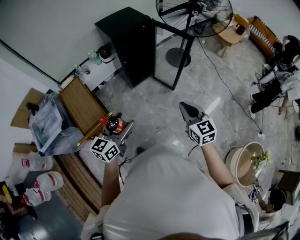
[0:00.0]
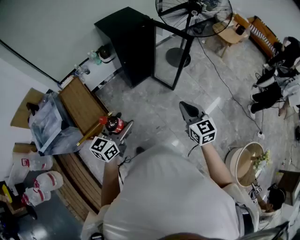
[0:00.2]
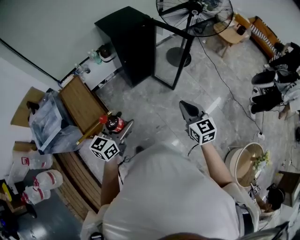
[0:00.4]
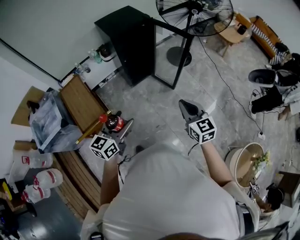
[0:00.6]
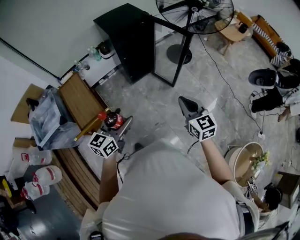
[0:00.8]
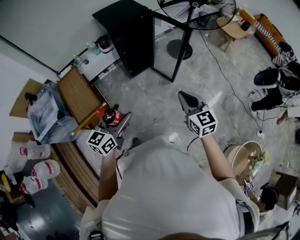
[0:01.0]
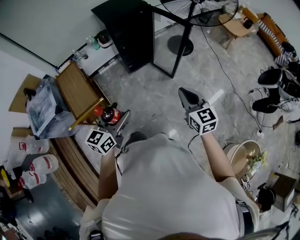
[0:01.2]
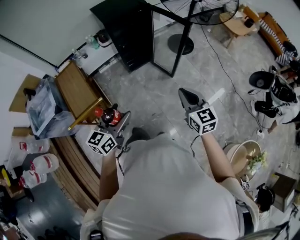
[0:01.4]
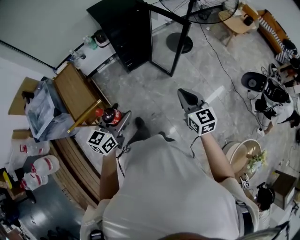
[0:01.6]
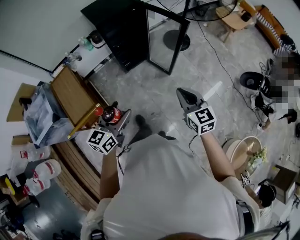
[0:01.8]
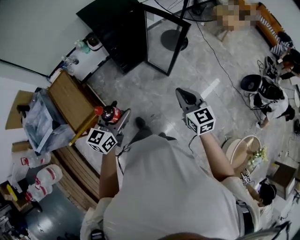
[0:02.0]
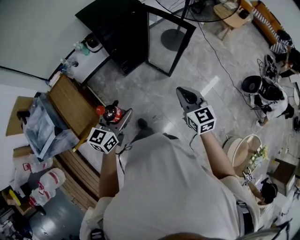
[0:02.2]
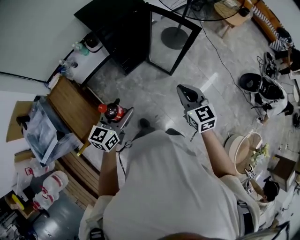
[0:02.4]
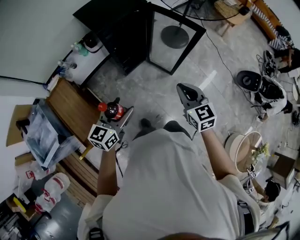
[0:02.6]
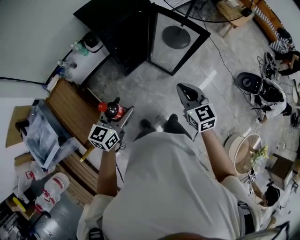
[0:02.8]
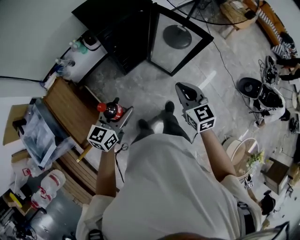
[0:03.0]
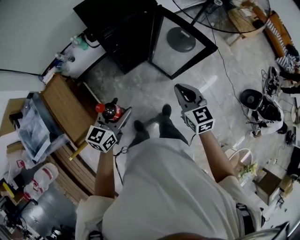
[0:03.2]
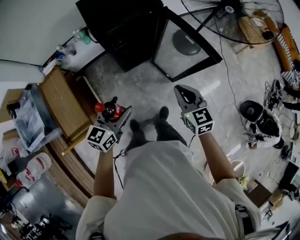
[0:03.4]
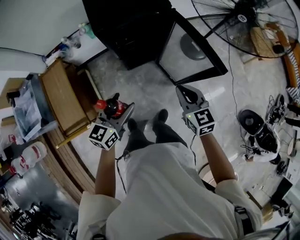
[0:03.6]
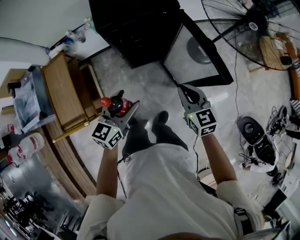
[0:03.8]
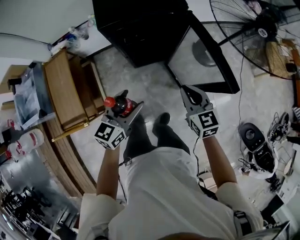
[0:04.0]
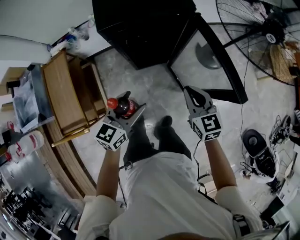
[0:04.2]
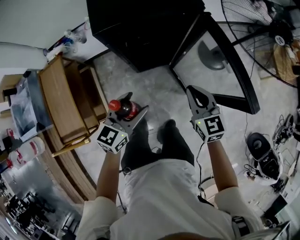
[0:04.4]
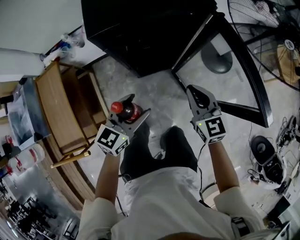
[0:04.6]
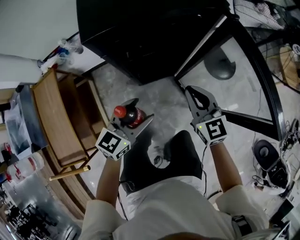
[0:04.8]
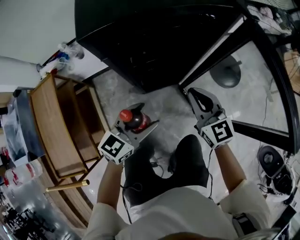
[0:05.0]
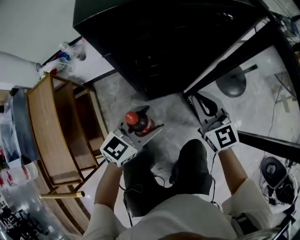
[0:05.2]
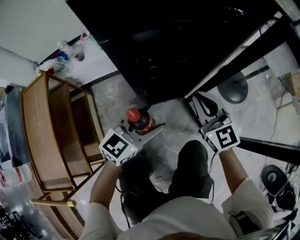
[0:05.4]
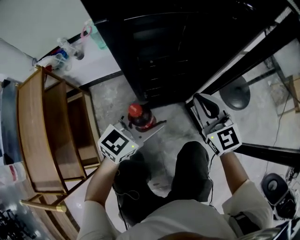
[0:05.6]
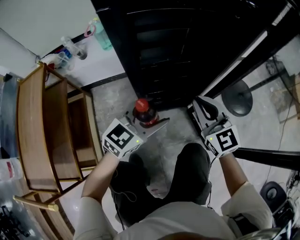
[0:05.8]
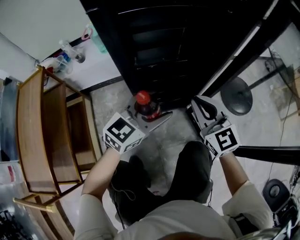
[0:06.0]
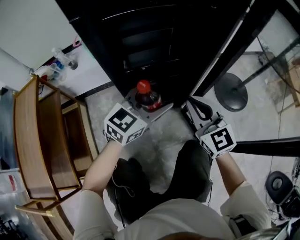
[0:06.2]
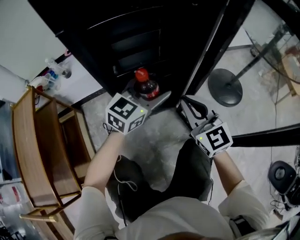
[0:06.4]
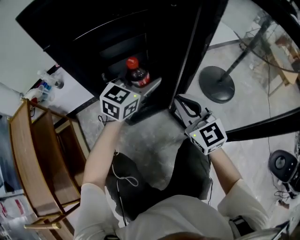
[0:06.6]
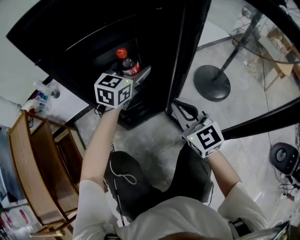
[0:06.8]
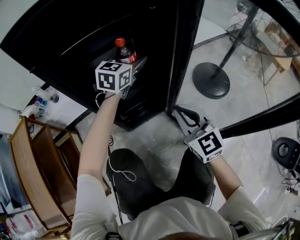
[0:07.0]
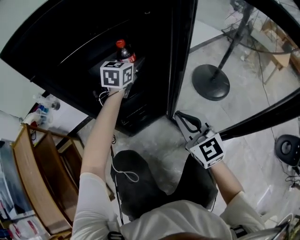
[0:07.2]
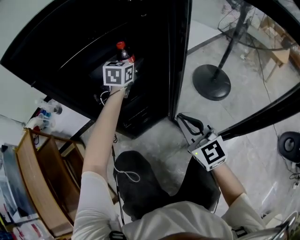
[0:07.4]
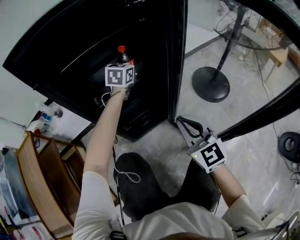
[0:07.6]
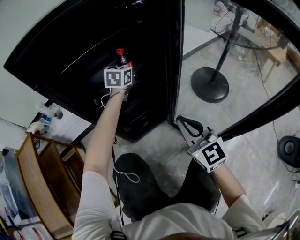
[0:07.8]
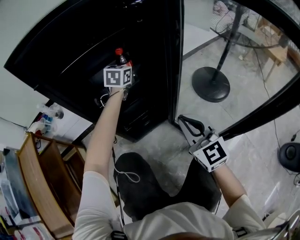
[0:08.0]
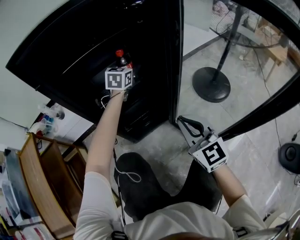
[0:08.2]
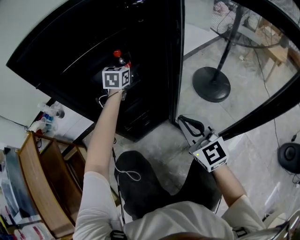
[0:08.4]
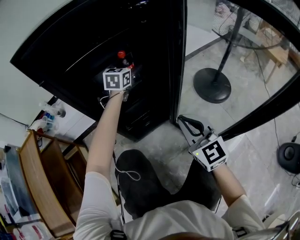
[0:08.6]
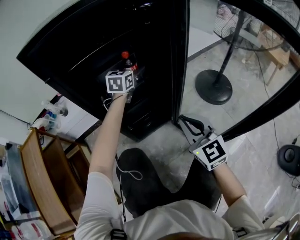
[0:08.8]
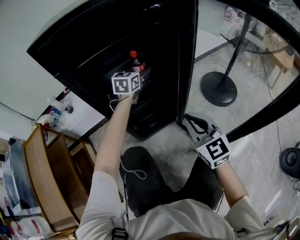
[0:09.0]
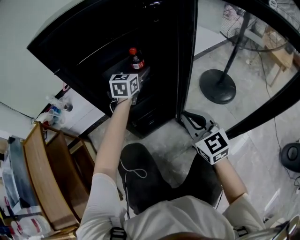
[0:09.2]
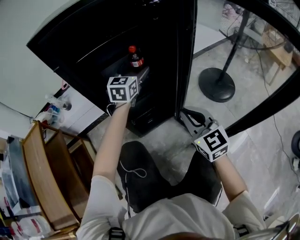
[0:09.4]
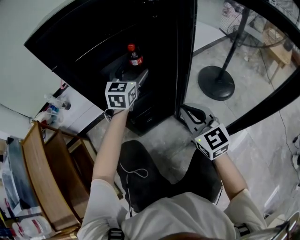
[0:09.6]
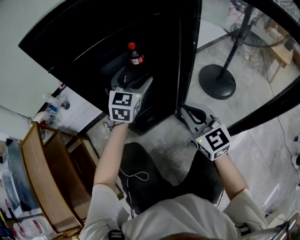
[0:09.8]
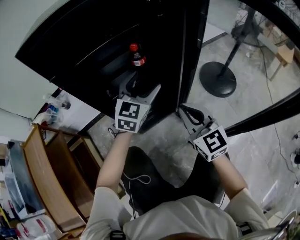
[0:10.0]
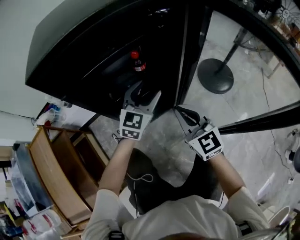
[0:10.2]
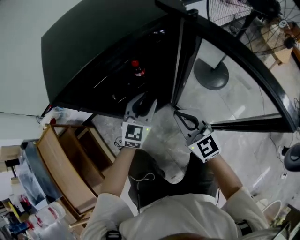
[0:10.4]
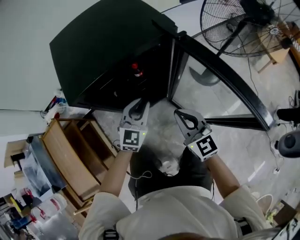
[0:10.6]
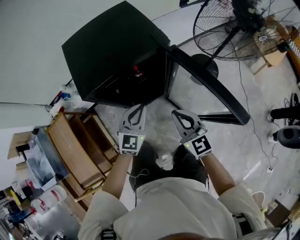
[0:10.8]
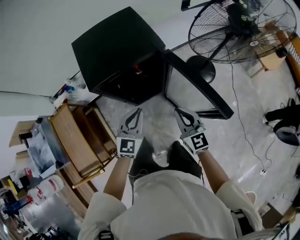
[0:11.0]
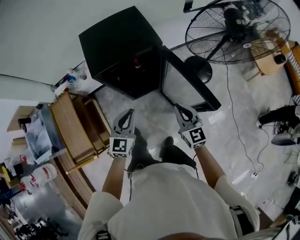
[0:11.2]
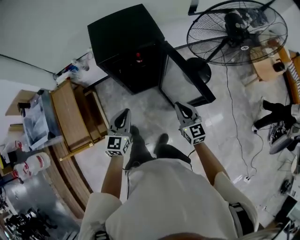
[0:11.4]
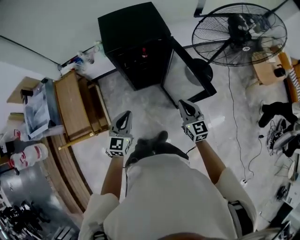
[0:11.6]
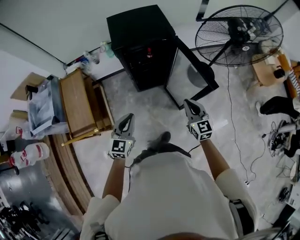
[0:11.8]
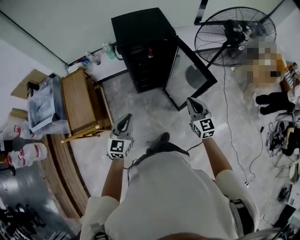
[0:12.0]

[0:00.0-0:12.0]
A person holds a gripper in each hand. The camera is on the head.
0:00.0 to 0:01.6: The two grippers go some 10 cm to the right.
0:01.6 to 0:03.0: The left gripper shifts approximately 25 cm forward; the right gripper is displaced forward and to the left by roughly 25 cm.
0:03.0 to 0:04.4: The right gripper moves forward and downward, about 30 cm; the left gripper goes roughly 25 cm forward, downward and to the right.
0:04.4 to 0:06.0: Both grippers travel together downward and forward, approximately 35 cm. The right gripper swivels about 20 degrees.
0:06.0 to 0:07.6: The right gripper moves to the right and backward, roughly 10 cm; the left gripper heads forward, covering approximately 30 cm.
0:07.6 to 0:09.0: The grippers make only small movements.
0:09.0 to 0:10.4: The left gripper moves backward and upward, approximately 20 cm, and closes up. Meanwhile the right gripper moves upward, roughly 10 cm.
0:10.4 to 0:12.0: The left gripper heads backward and upward, covering roughly 60 cm, and swivels roughly 30 degrees, while the right gripper travels upward and backward by some 40 cm.

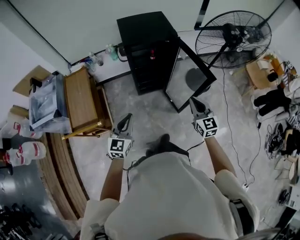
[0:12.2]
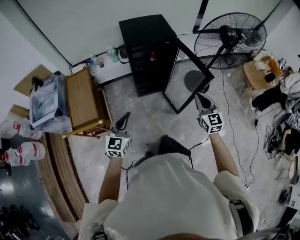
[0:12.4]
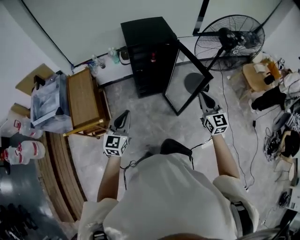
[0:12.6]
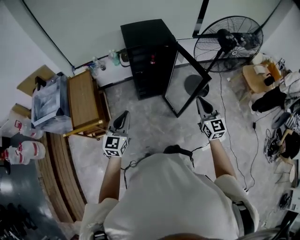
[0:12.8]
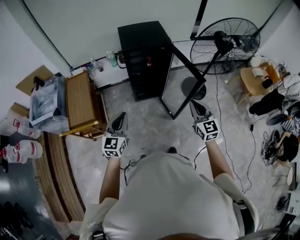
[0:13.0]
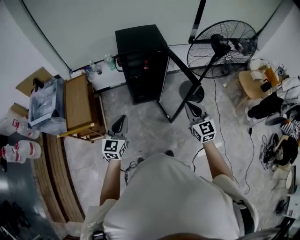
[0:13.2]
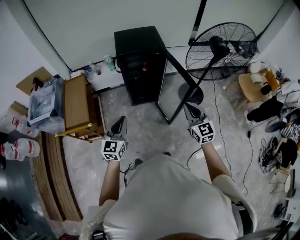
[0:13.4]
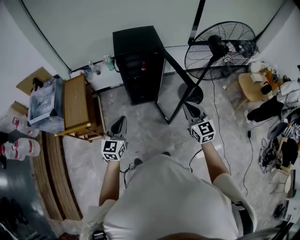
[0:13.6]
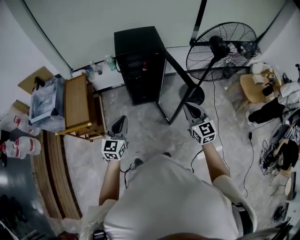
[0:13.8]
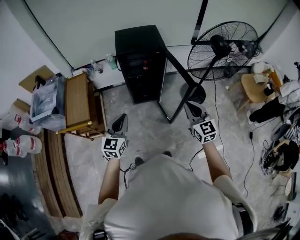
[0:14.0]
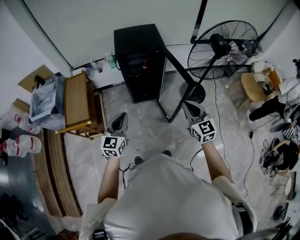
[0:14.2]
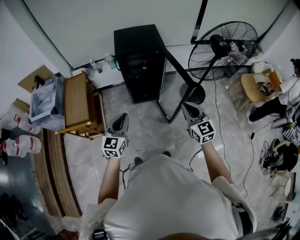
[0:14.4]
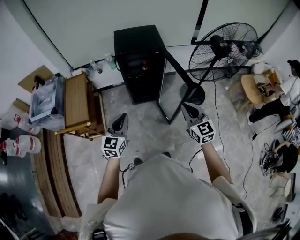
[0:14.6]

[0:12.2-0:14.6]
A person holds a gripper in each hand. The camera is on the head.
0:12.2 to 0:13.4: The left gripper heads to the right and upward, covering roughly 10 cm. The right gripper travels upward, to the right and backward by roughly 10 cm.
0:13.4 to 0:14.6: The grippers move only a little.

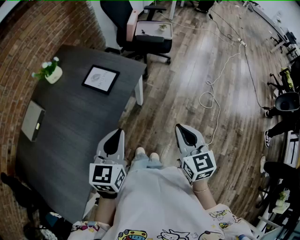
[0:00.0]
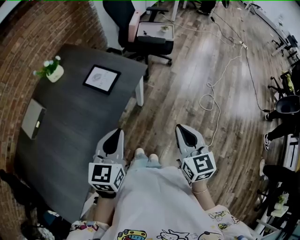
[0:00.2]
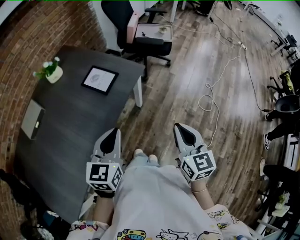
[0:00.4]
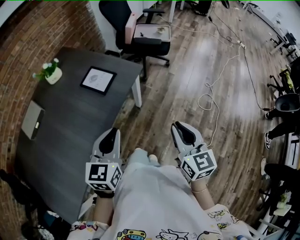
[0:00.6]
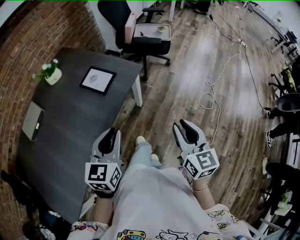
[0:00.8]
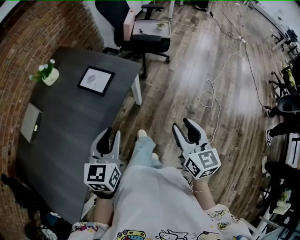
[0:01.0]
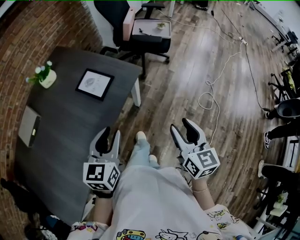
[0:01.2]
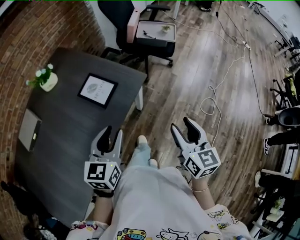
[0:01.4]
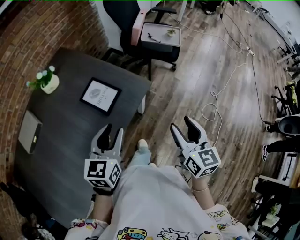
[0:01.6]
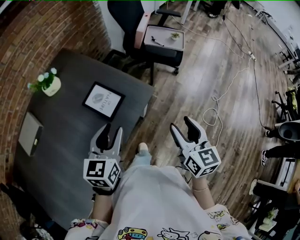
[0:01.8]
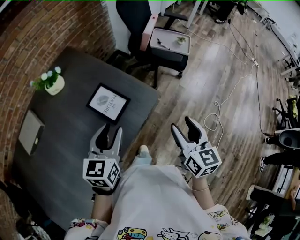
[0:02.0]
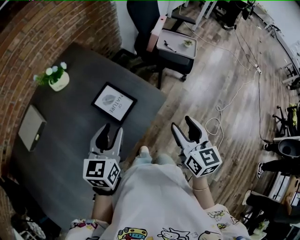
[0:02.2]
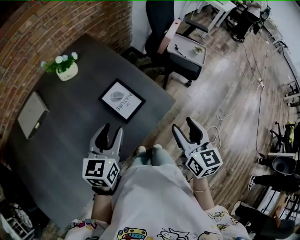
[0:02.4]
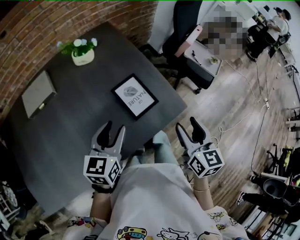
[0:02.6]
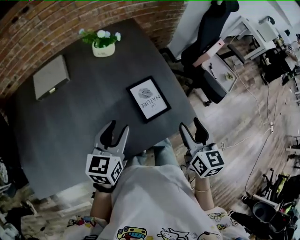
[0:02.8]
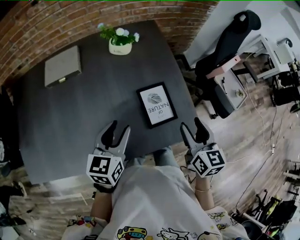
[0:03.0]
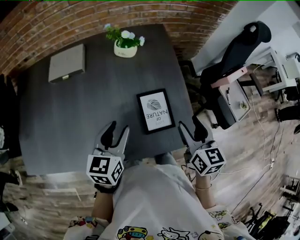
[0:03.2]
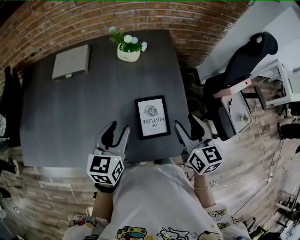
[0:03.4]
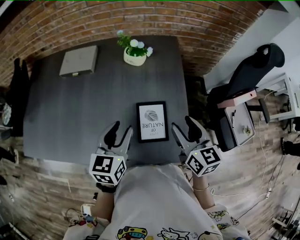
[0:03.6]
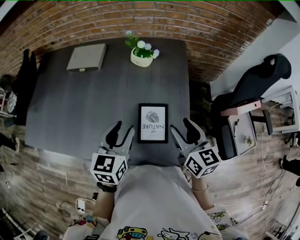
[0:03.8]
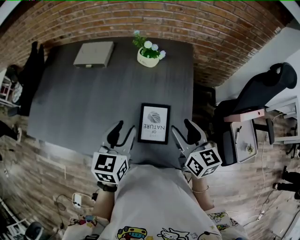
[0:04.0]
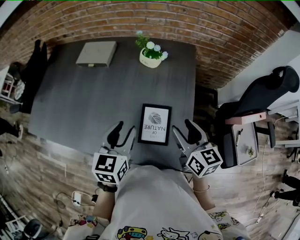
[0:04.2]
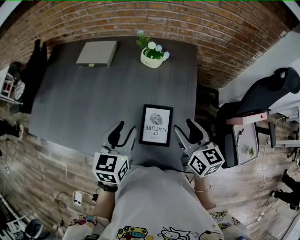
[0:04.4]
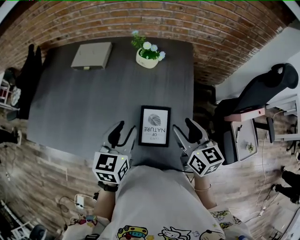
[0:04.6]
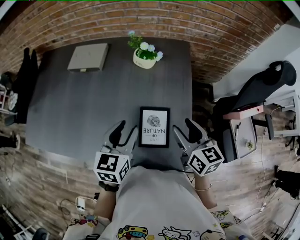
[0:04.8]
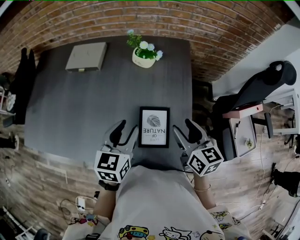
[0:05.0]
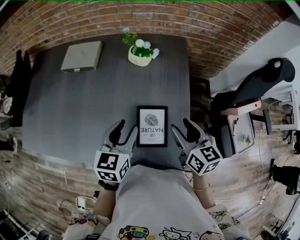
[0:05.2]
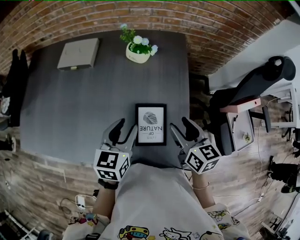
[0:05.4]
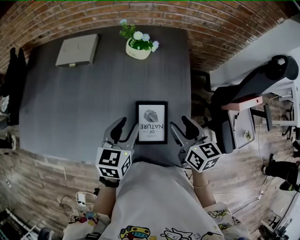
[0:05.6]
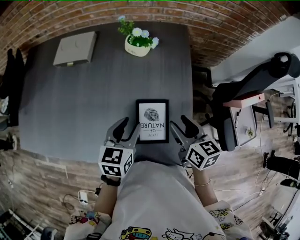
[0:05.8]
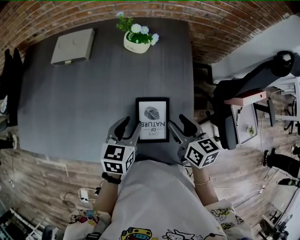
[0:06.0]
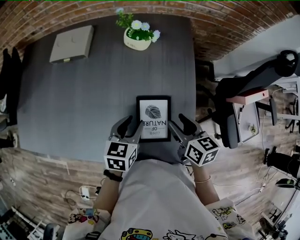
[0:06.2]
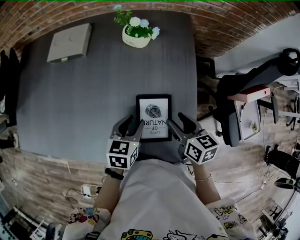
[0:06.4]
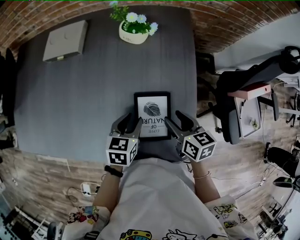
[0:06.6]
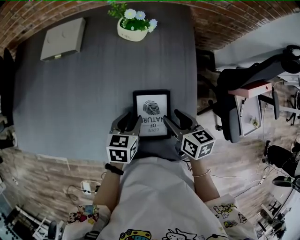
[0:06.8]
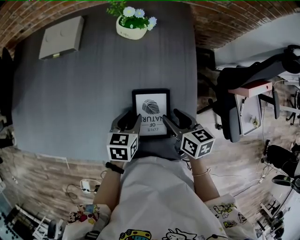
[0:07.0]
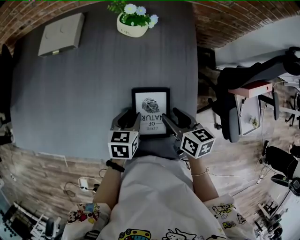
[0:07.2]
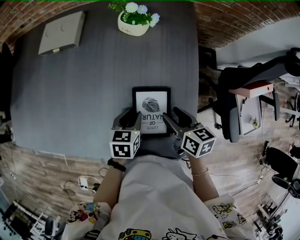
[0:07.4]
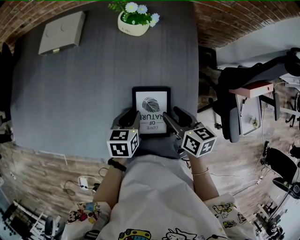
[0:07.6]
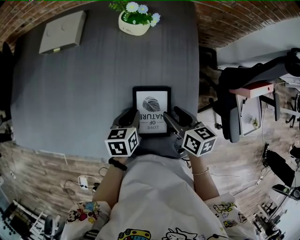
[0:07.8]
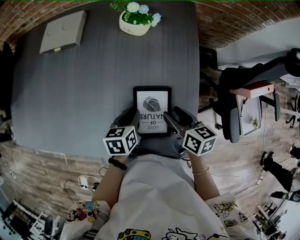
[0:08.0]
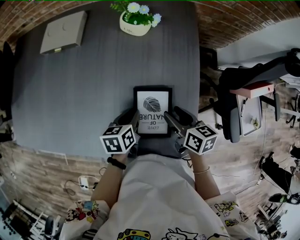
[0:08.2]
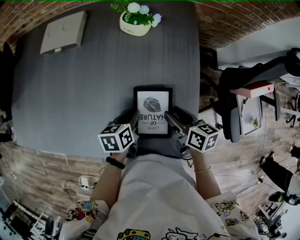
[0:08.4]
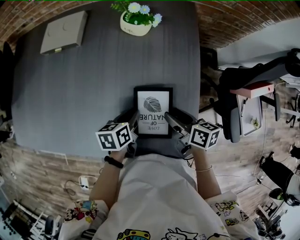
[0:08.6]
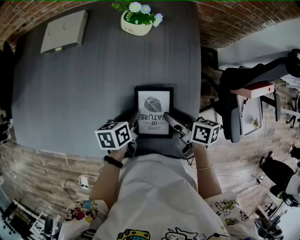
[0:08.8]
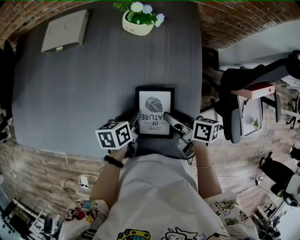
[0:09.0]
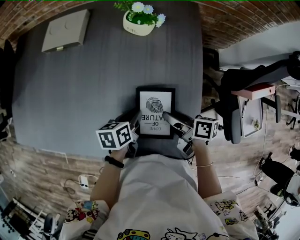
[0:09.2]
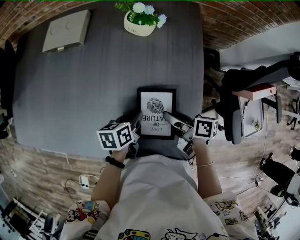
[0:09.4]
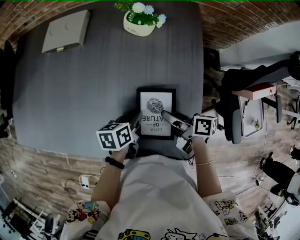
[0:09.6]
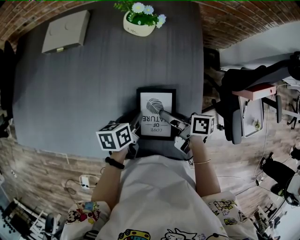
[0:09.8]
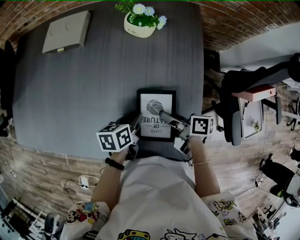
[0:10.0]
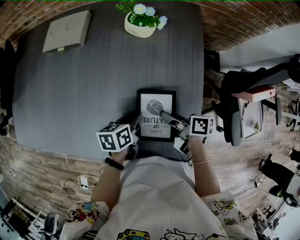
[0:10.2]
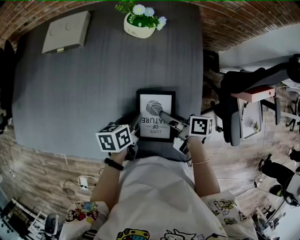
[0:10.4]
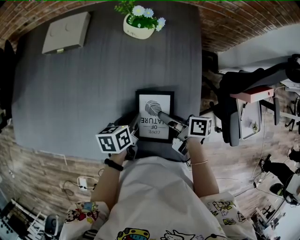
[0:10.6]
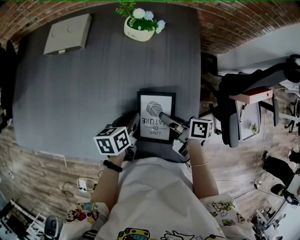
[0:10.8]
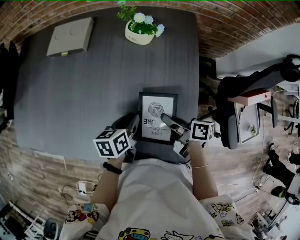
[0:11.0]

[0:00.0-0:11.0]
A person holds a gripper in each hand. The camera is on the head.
0:00.0 to 0:01.6: Both grippers move forward, some 15 cm. The right gripper opens its fingers, while the left gripper opens.
0:01.6 to 0:03.2: The left gripper shifts by approximately 15 cm, and changes its angle by some 50 degrees. The right gripper shifts by approximately 30 cm, and rotates about 50 degrees.
0:03.2 to 0:04.8: The right gripper heads forward, covering about 10 cm, and turns by about 20 degrees; the left gripper goes about 5 cm to the right.
0:04.8 to 0:06.2: Both grippers travel together downward, approximately 10 cm.
0:06.2 to 0:07.8: The left gripper travels downward by approximately 10 cm, while the right gripper goes roughly 5 cm downward.
0:07.8 to 0:09.4: The right gripper swivels approximately 30 degrees.
0:09.4 to 0:11.0: The right gripper closes.
